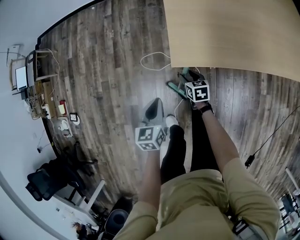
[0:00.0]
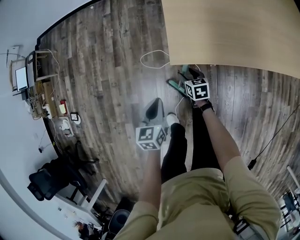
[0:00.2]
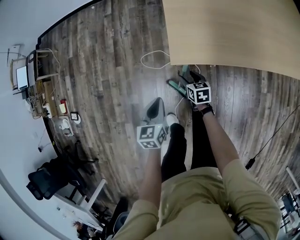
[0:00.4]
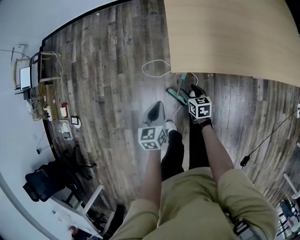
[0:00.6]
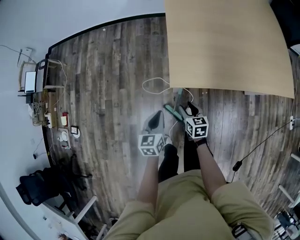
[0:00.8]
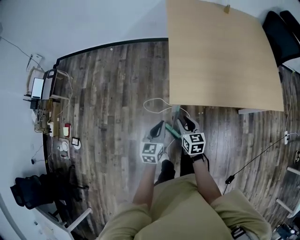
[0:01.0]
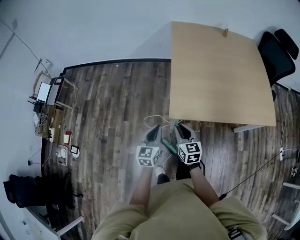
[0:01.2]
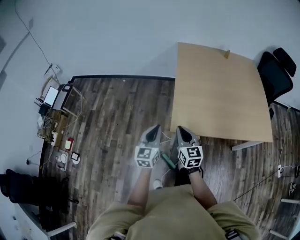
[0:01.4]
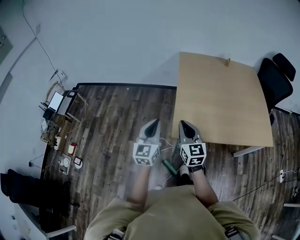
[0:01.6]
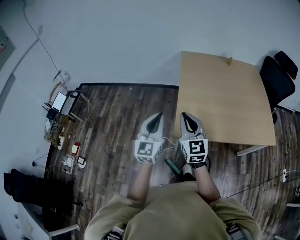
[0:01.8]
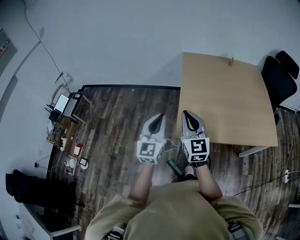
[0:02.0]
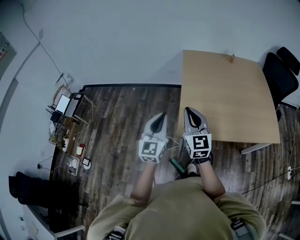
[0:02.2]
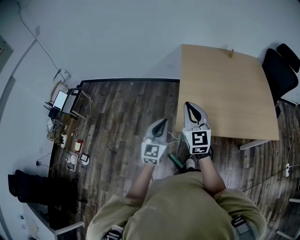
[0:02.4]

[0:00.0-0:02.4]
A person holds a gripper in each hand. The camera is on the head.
0:00.0 to 0:01.2: The right gripper is displaced upward by about 40 cm, rotates about 30 degrees, and closes its fingers; the left gripper travels upward by roughly 25 cm, and changes its angle by roughly 20 degrees.
0:01.2 to 0:02.4: The left gripper goes about 20 cm upward, and swivels approximately 20 degrees; the right gripper is displaced upward by some 25 cm, and changes its angle by approximately 30 degrees.

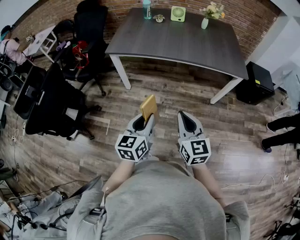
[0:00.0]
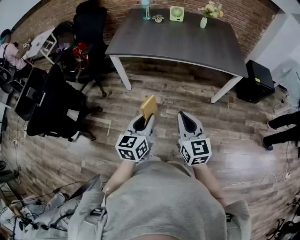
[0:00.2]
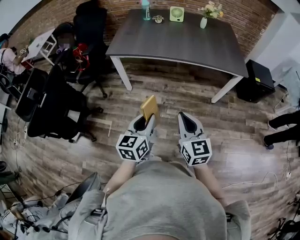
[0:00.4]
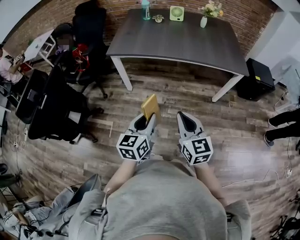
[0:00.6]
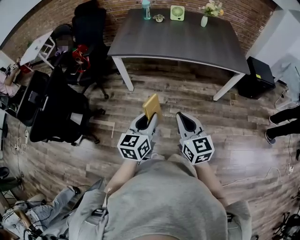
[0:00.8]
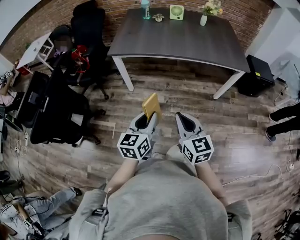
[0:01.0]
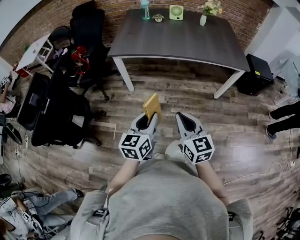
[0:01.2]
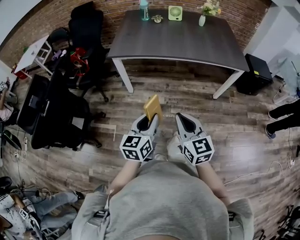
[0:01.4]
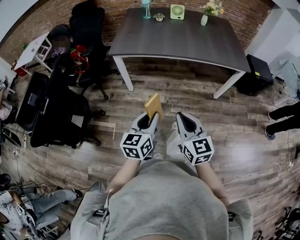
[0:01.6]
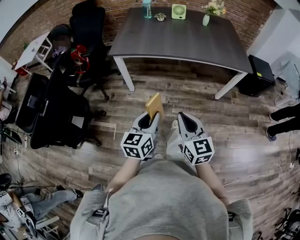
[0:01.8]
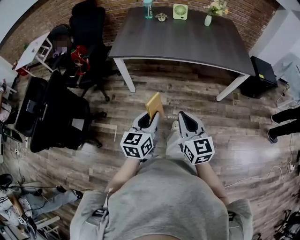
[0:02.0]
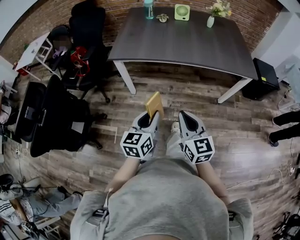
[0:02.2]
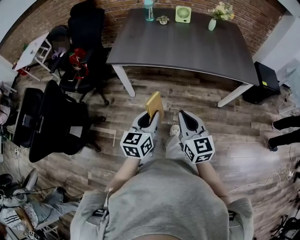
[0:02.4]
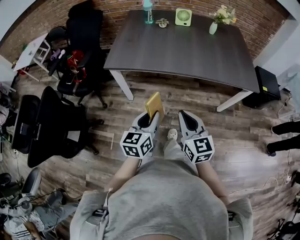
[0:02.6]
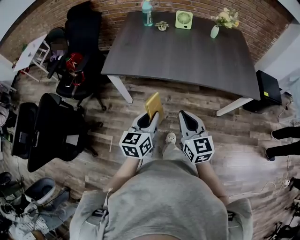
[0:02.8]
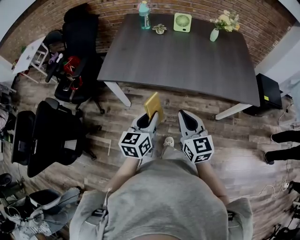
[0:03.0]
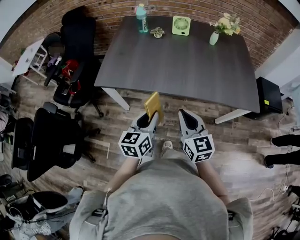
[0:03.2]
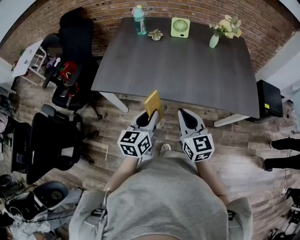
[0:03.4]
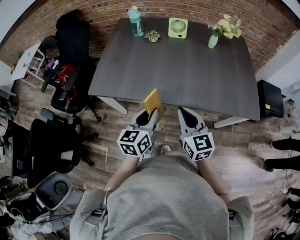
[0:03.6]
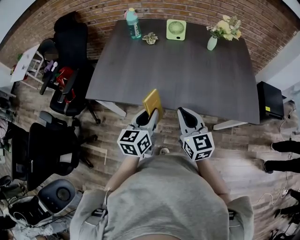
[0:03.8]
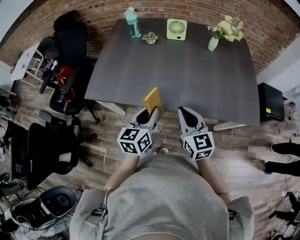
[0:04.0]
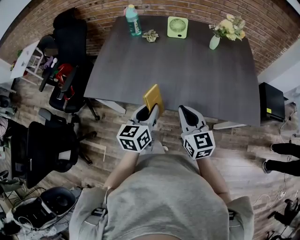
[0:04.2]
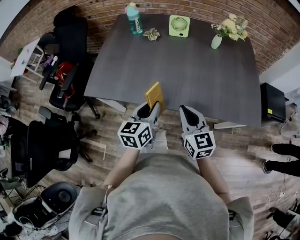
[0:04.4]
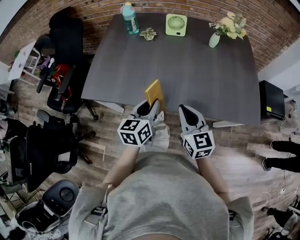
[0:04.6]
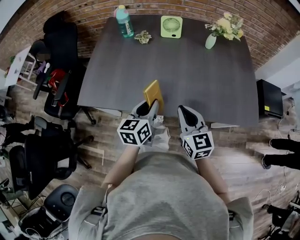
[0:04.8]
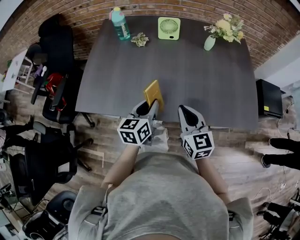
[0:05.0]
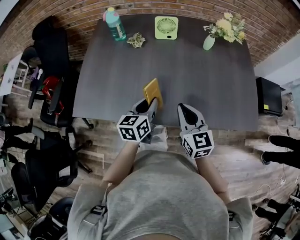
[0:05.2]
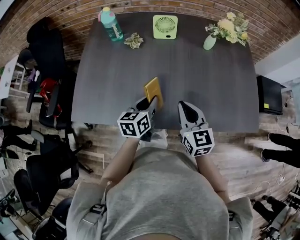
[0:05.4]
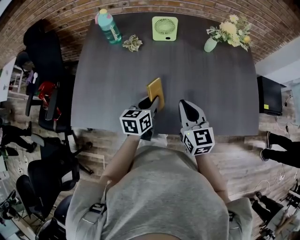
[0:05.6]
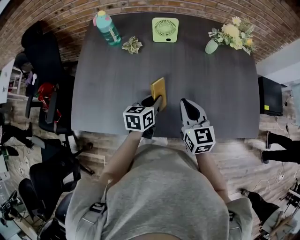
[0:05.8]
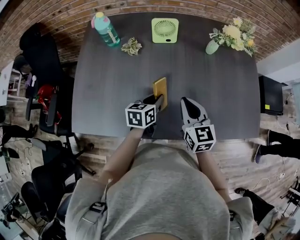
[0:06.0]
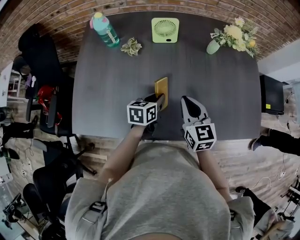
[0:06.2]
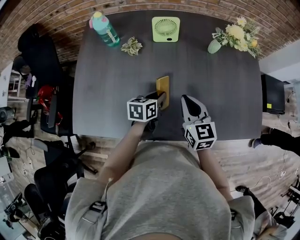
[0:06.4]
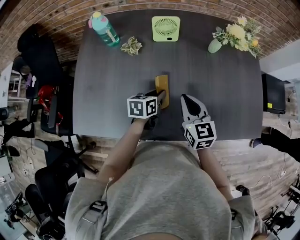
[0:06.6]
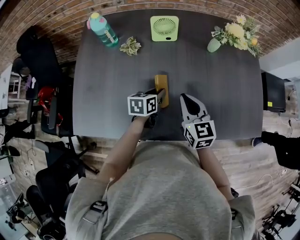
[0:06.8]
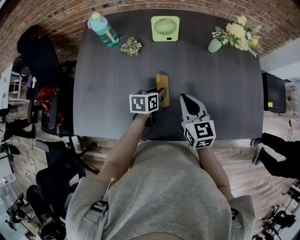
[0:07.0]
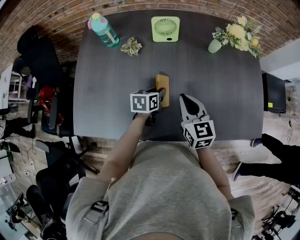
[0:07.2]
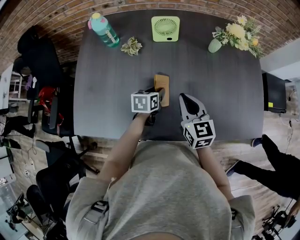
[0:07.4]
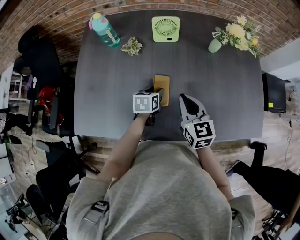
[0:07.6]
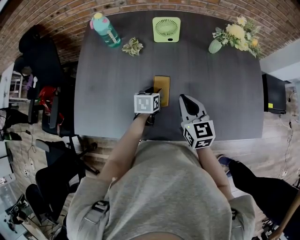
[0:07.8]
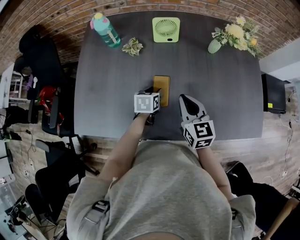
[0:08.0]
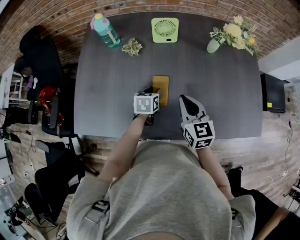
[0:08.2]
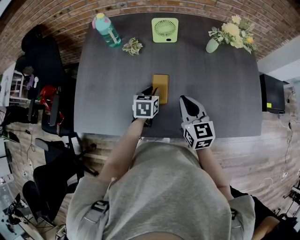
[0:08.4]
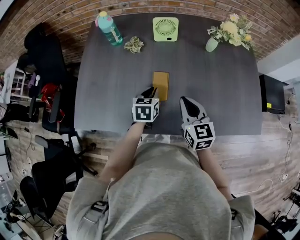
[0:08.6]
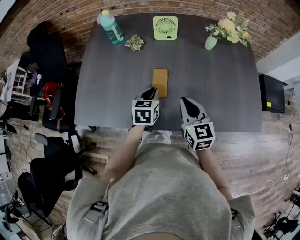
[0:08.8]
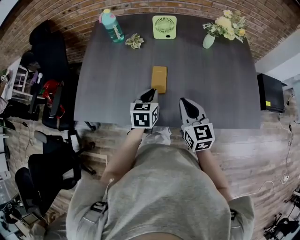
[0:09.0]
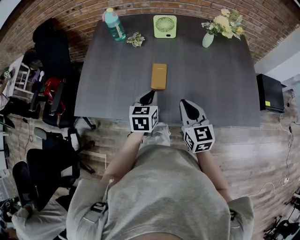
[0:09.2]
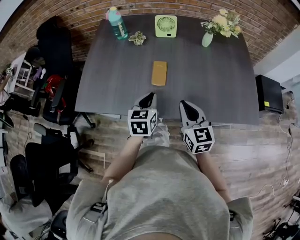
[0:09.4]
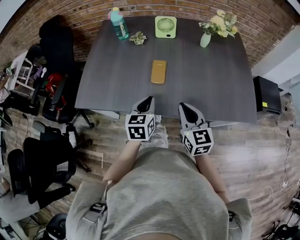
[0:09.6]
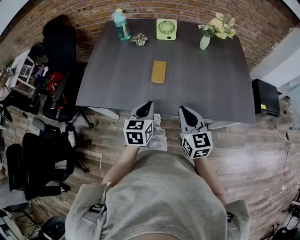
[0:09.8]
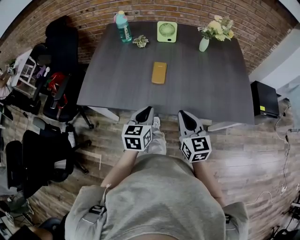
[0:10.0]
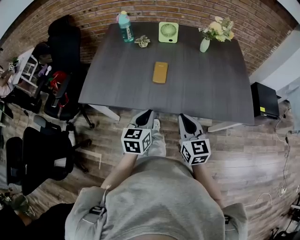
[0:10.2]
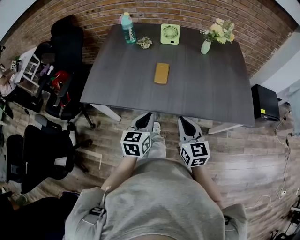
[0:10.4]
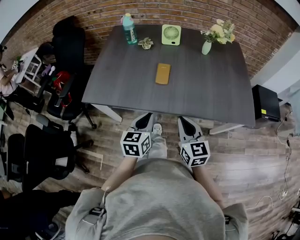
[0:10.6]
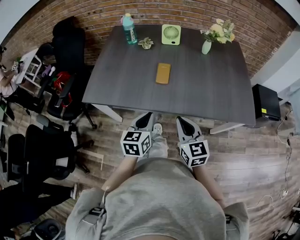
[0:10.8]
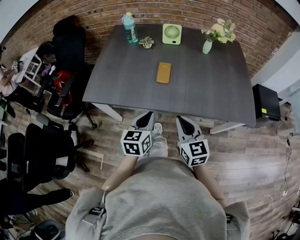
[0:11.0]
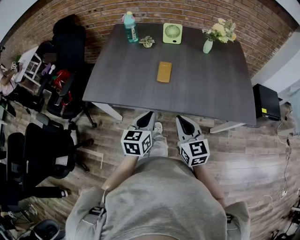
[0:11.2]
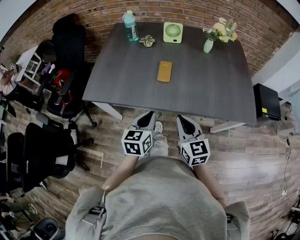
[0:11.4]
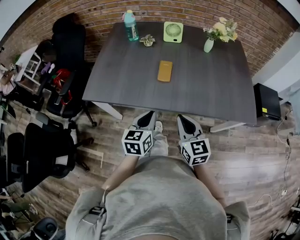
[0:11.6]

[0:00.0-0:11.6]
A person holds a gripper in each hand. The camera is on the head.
0:00.0 to 0:01.4: Both grippers travel together to the left, about 10 cm.
0:01.4 to 0:02.8: The two grippers go some 25 cm forward.
0:02.8 to 0:04.4: Both grippers move forward and to the right, roughly 25 cm.
0:04.4 to 0:05.8: The left gripper moves forward and downward, approximately 25 cm, and changes its angle by about 20 degrees; the right gripper shifts about 20 cm forward.
0:05.8 to 0:07.2: The left gripper travels forward and downward by approximately 10 cm. The right gripper ends up roughly 5 cm from where it was.
0:07.2 to 0:08.8: The left gripper moves backward and upward, approximately 10 cm, and turns by some 20 degrees; the right gripper shifts about 10 cm backward.
0:08.8 to 0:10.2: Both grippers travel together backward, roughly 20 cm.
0:10.2 to 0:11.6: The grippers move only a little.

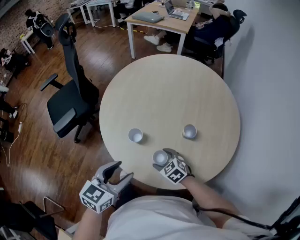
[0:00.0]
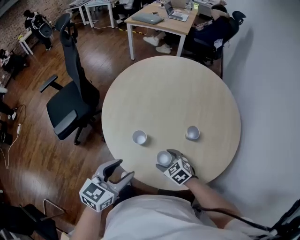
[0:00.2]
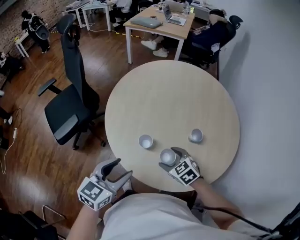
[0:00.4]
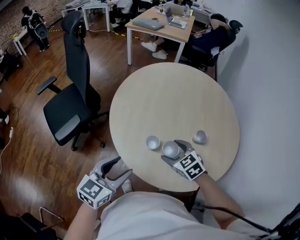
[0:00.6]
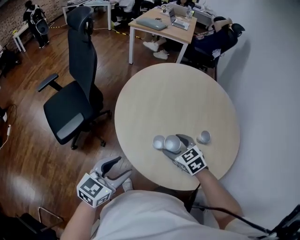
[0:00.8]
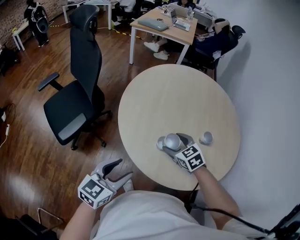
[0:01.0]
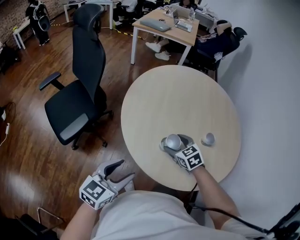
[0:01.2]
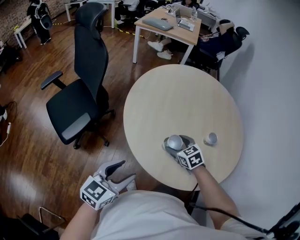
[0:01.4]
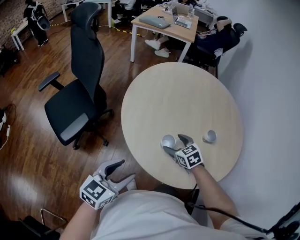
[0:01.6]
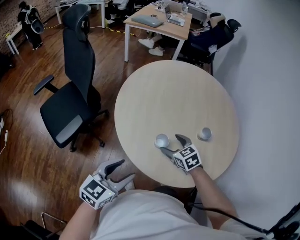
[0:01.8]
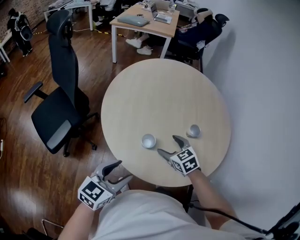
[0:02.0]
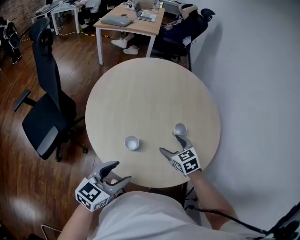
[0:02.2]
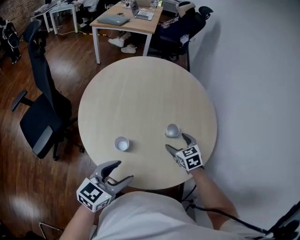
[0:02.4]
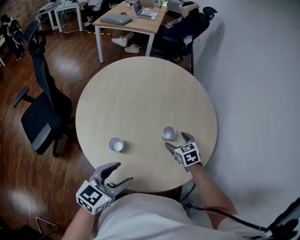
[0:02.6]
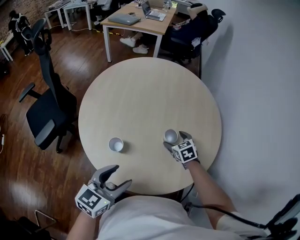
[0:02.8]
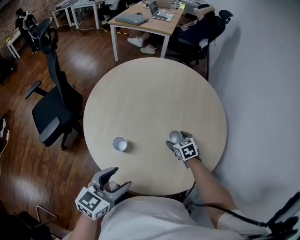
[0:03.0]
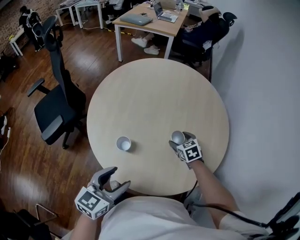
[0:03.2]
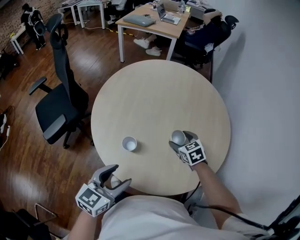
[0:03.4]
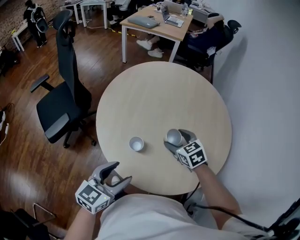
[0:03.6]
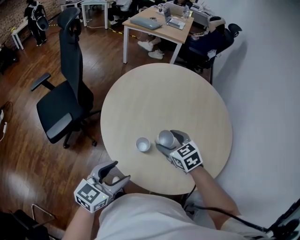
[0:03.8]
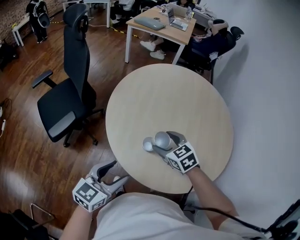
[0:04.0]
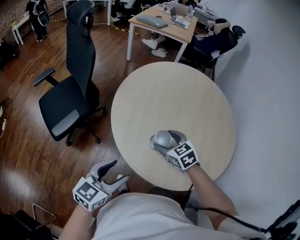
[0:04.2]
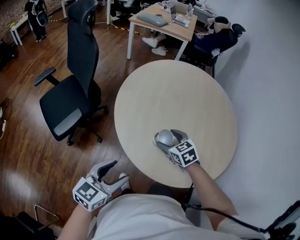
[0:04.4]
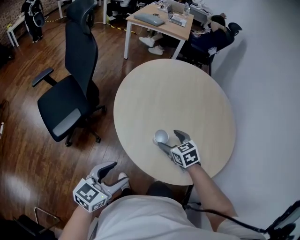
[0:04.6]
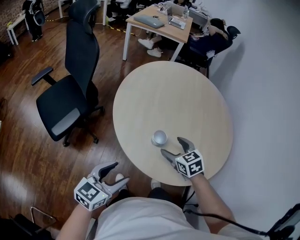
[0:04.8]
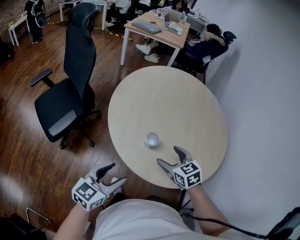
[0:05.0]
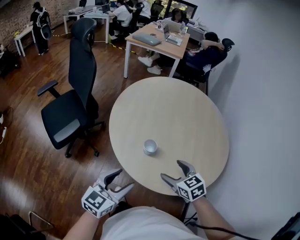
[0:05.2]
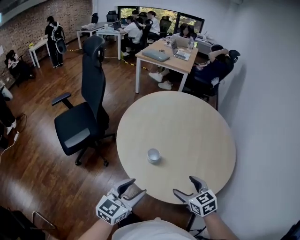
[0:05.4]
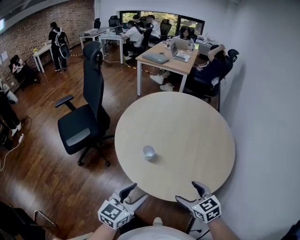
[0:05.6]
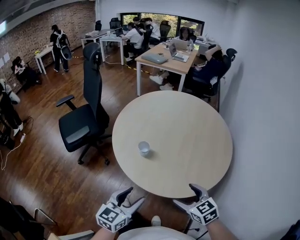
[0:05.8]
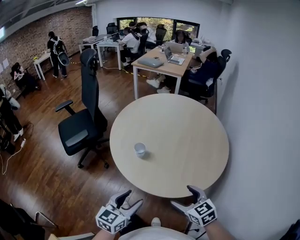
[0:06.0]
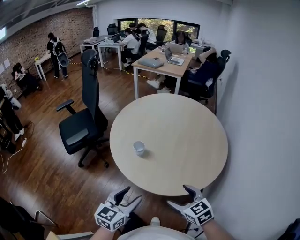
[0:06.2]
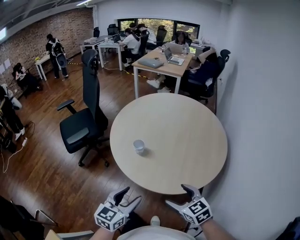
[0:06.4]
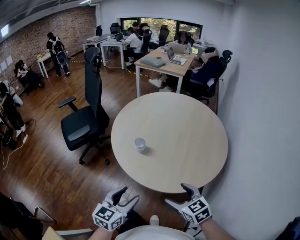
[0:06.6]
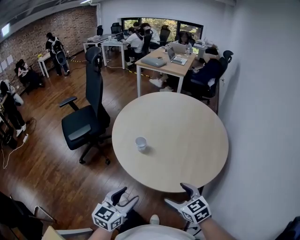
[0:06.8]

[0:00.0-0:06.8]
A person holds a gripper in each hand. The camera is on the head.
0:00.0 to 0:01.4: The left gripper moves to the left, about 20 cm; the right gripper moves to the left, forward and upward, approximately 15 cm.
0:01.4 to 0:02.8: Both grippers move to the right, roughly 25 cm.
0:02.8 to 0:04.0: The left gripper goes about 15 cm to the left; the right gripper shifts approximately 30 cm to the left and upward, and rotates approximately 20 degrees.
0:04.0 to 0:05.4: The right gripper is displaced backward and to the right by about 20 cm, while the left gripper heads to the right and backward, covering roughly 10 cm.
0:05.4 to 0:06.8: The right gripper moves backward, some 15 cm, while the left gripper moves backward and to the right, approximately 15 cm.

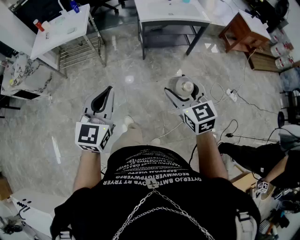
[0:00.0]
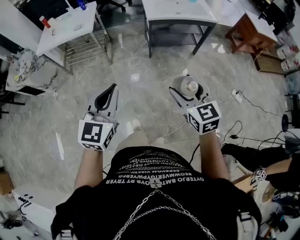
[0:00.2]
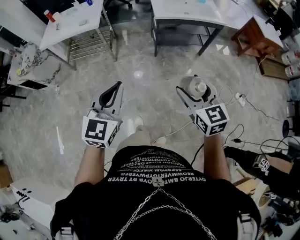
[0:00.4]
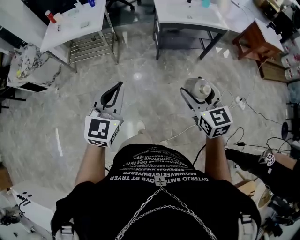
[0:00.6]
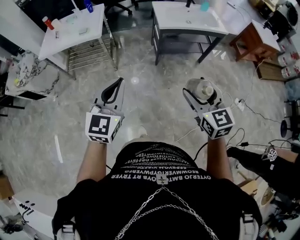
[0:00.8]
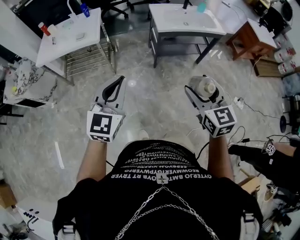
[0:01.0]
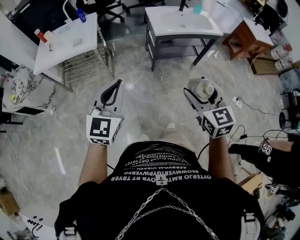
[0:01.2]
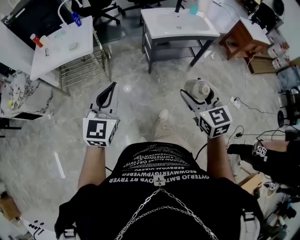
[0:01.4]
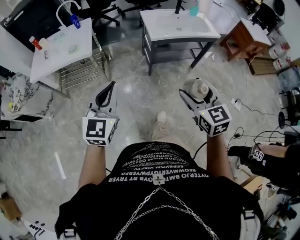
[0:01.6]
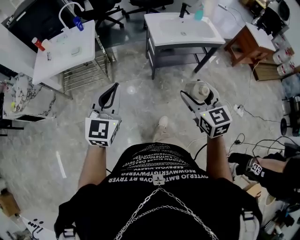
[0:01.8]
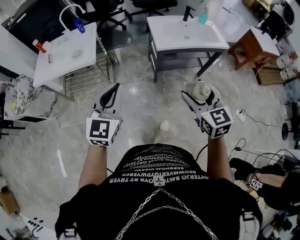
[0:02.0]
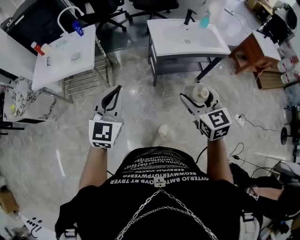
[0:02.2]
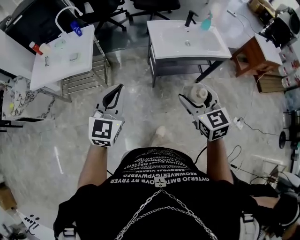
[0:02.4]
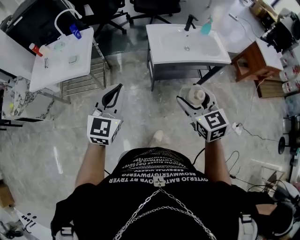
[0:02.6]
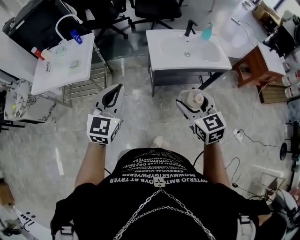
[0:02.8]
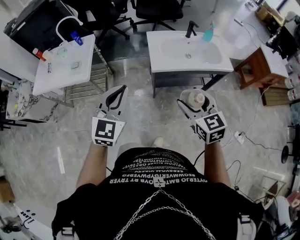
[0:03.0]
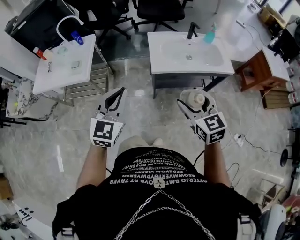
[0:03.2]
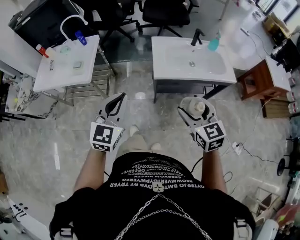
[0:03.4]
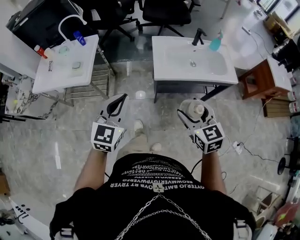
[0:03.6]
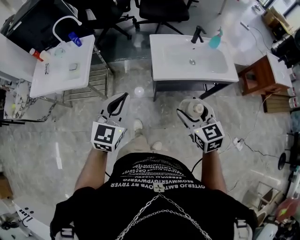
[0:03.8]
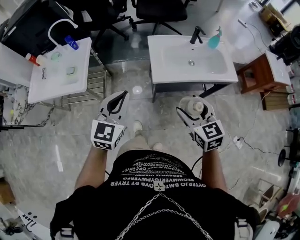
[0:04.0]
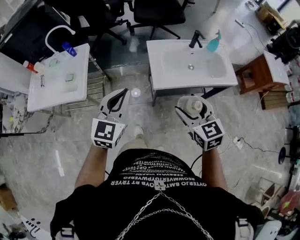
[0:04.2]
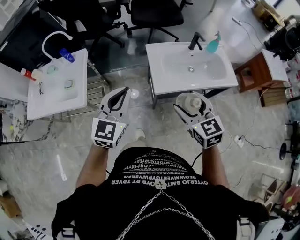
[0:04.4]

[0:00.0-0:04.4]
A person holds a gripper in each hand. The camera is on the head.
0:00.0 to 0:01.4: The two grippers go approximately 20 cm forward and to the left.
0:01.4 to 0:03.0: Both grippers move forward and to the right, roughly 35 cm.
0:03.0 to 0:04.4: Both grippers travel together forward, about 20 cm.
